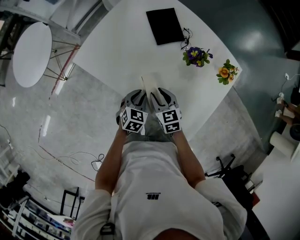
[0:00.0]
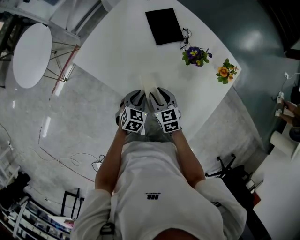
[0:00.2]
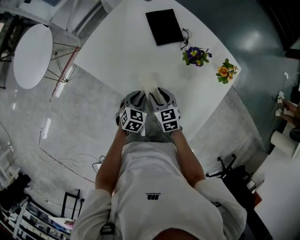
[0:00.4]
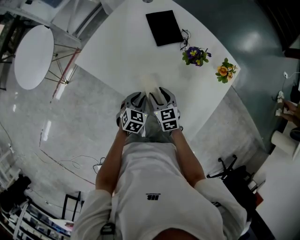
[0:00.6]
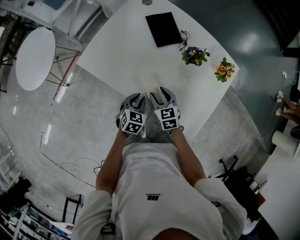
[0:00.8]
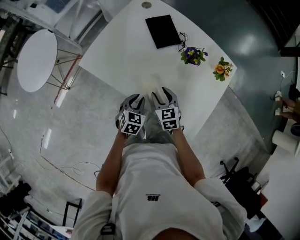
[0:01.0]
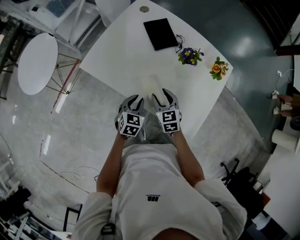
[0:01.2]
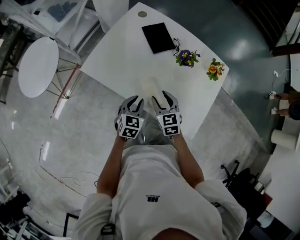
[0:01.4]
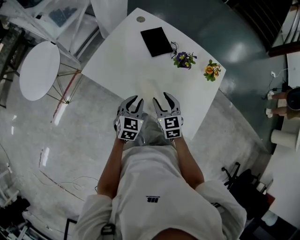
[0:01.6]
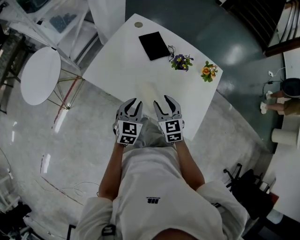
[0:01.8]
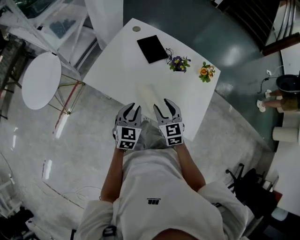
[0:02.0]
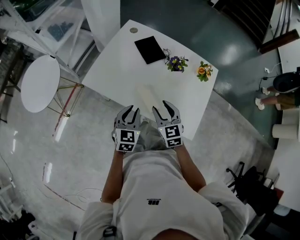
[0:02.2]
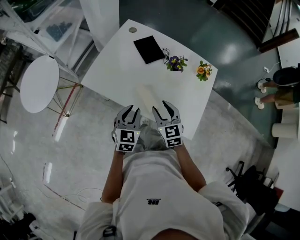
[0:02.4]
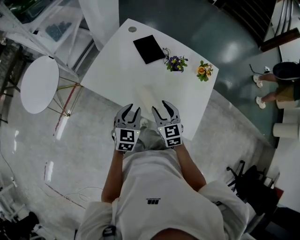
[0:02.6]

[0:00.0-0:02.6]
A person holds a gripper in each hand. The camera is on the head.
0:00.0 to 0:01.2: The left gripper shifts by some 5 cm.
0:01.2 to 0:02.6: The grippers both shift upward by approximately 10 cm.

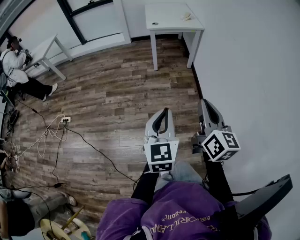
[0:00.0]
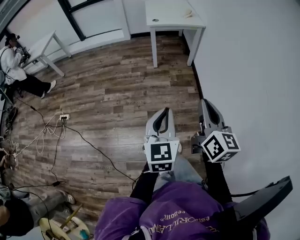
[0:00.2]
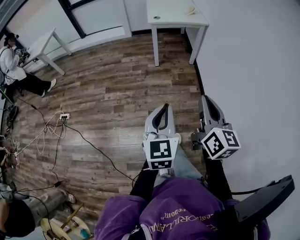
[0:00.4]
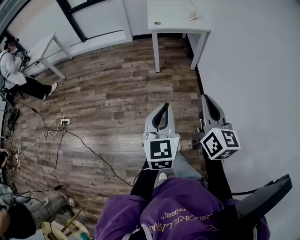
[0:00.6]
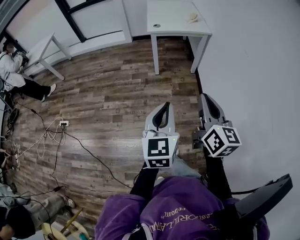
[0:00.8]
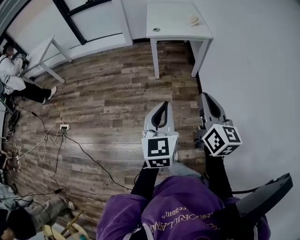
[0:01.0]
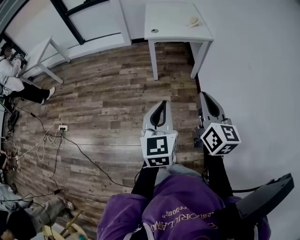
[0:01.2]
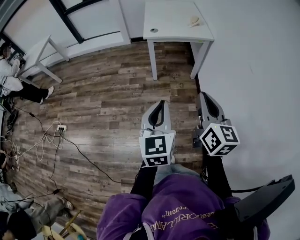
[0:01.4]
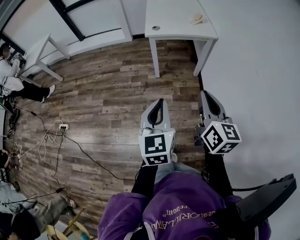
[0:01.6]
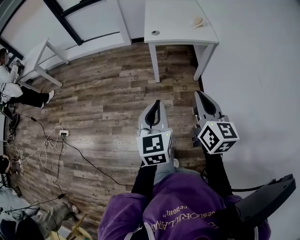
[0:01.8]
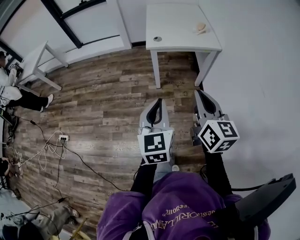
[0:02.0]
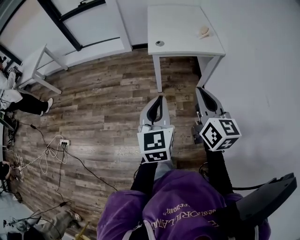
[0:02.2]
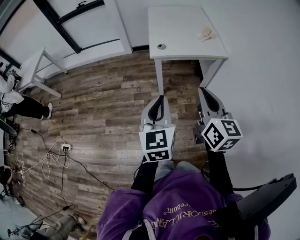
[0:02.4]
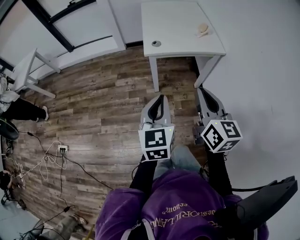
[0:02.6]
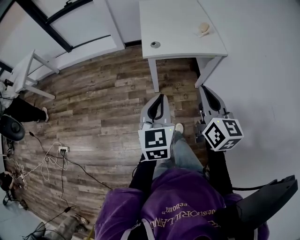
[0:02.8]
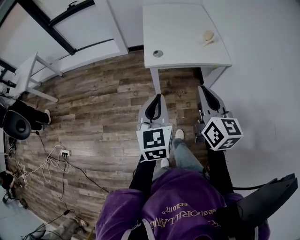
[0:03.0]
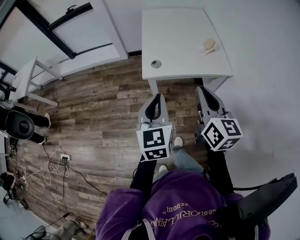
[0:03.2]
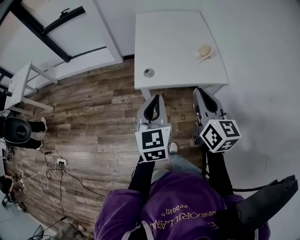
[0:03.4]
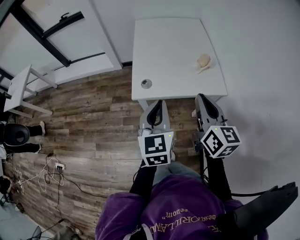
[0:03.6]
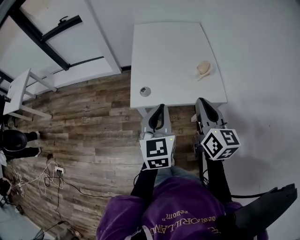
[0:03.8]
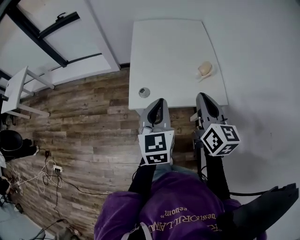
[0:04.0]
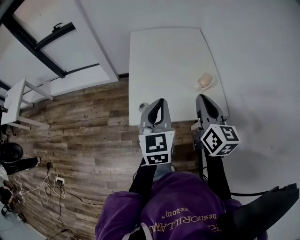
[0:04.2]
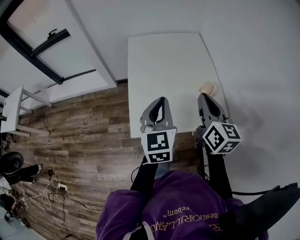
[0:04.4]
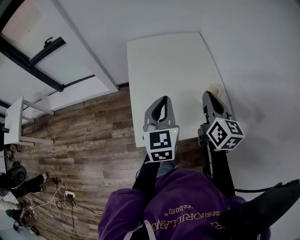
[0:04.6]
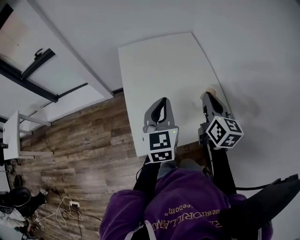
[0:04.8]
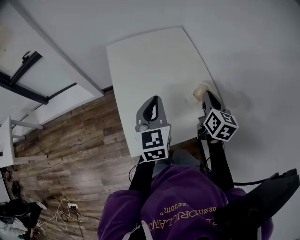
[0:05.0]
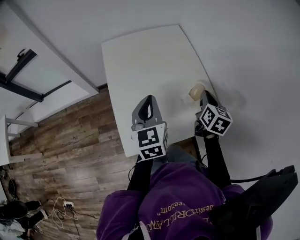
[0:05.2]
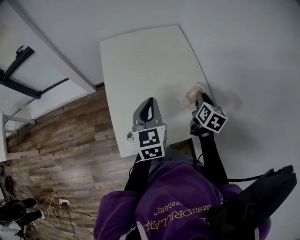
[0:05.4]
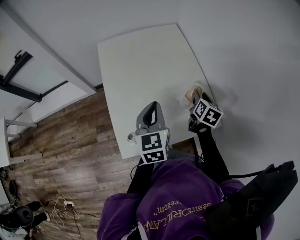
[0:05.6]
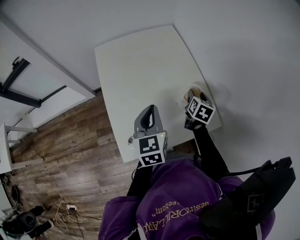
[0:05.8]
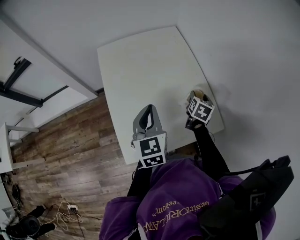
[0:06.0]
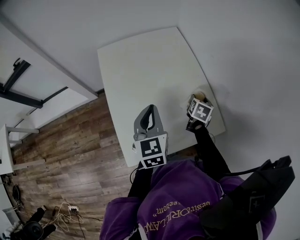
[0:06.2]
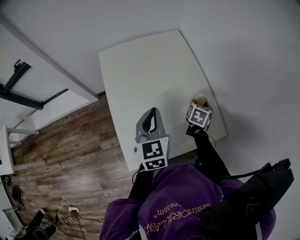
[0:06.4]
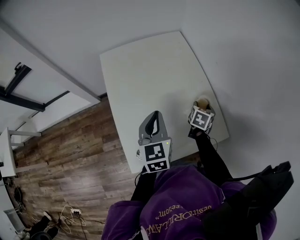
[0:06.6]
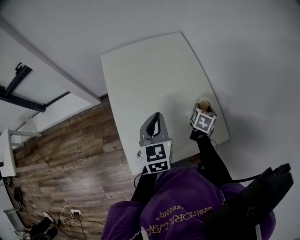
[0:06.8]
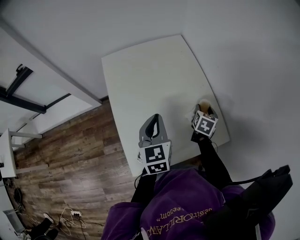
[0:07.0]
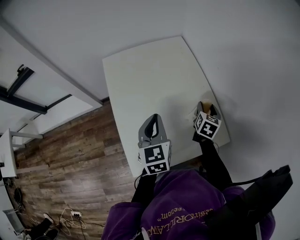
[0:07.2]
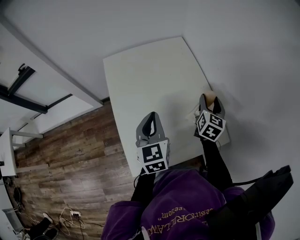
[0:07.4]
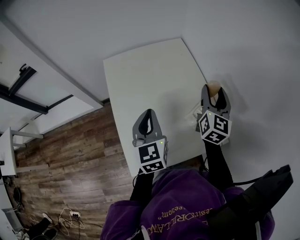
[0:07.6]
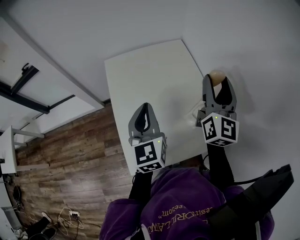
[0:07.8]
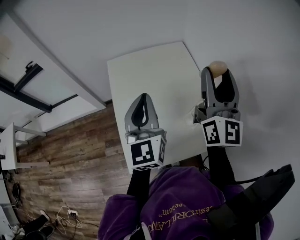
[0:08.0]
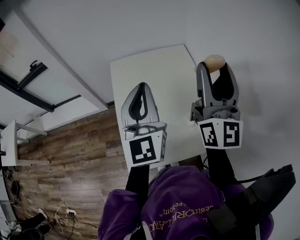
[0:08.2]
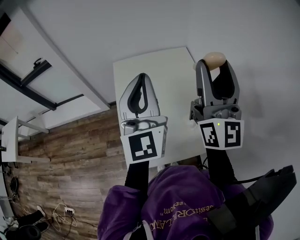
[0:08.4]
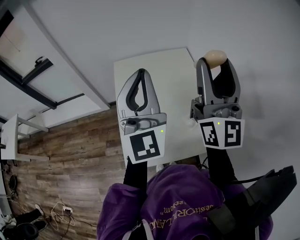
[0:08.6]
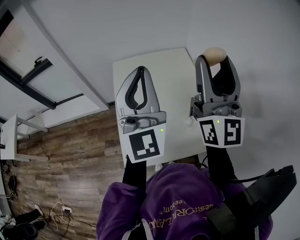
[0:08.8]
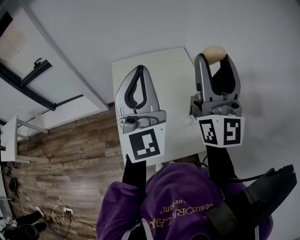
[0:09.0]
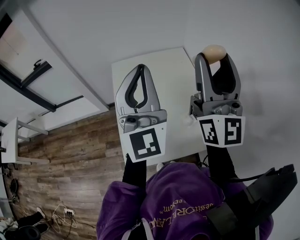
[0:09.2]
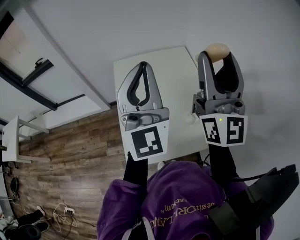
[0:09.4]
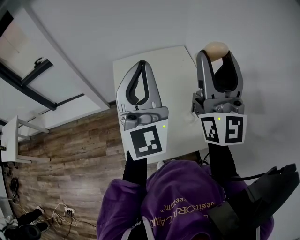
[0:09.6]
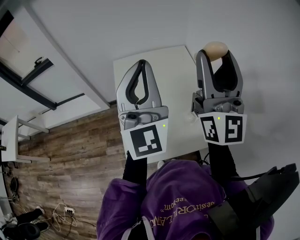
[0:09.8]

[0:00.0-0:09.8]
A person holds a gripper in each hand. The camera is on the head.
0:00.0 to 0:01.4: The grippers both shift forward by roughly 30 cm.
0:01.4 to 0:02.8: The two grippers go about 30 cm forward.
0:02.8 to 0:04.2: Both grippers travel together forward, about 35 cm.
0:04.2 to 0:05.6: The left gripper heads forward and downward, covering approximately 20 cm. The right gripper travels forward, downward and to the right by some 30 cm, turns by approximately 40 degrees, and opens.
0:05.6 to 0:07.0: The right gripper goes about 5 cm downward.
0:07.0 to 0:08.4: The right gripper heads upward, covering about 40 cm, and points its fingers roughly 70 degrees further upward; the left gripper shifts roughly 25 cm upward, and tilts its fingers roughly 40 degrees upward.
0:08.4 to 0:09.8: The grippers move only a little.

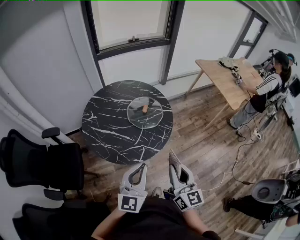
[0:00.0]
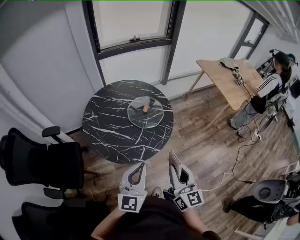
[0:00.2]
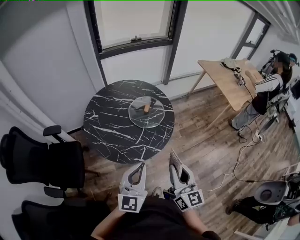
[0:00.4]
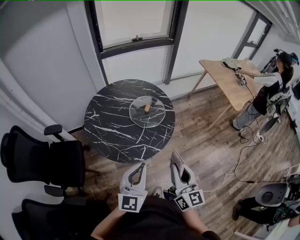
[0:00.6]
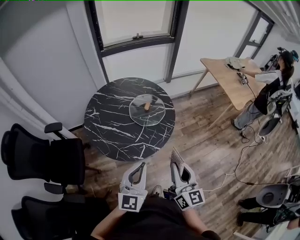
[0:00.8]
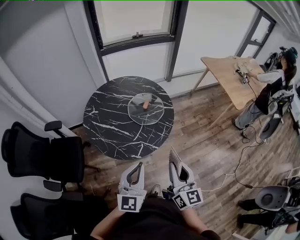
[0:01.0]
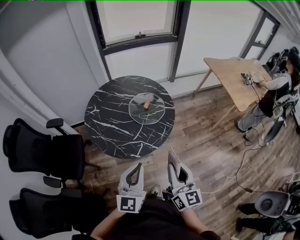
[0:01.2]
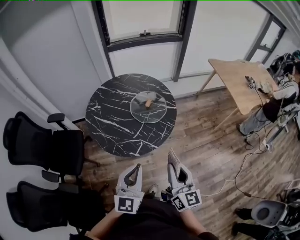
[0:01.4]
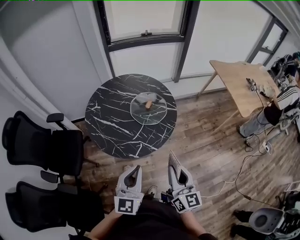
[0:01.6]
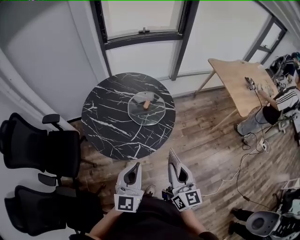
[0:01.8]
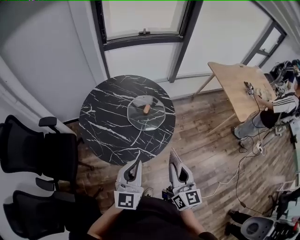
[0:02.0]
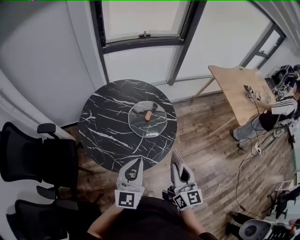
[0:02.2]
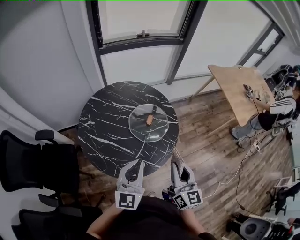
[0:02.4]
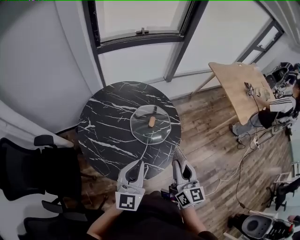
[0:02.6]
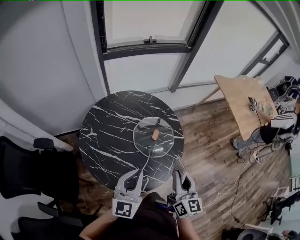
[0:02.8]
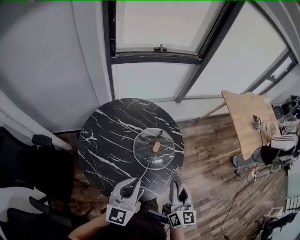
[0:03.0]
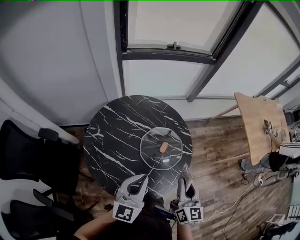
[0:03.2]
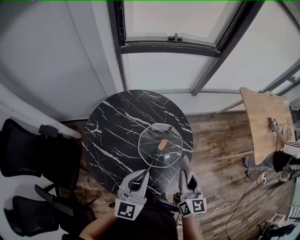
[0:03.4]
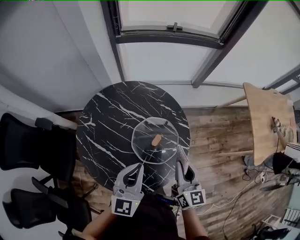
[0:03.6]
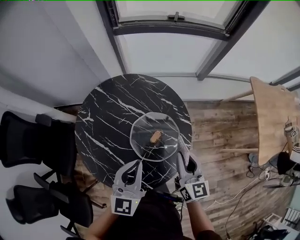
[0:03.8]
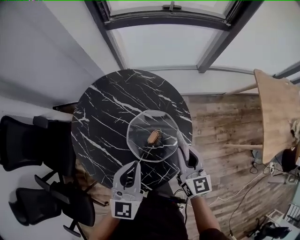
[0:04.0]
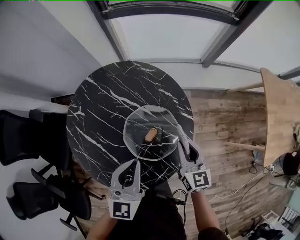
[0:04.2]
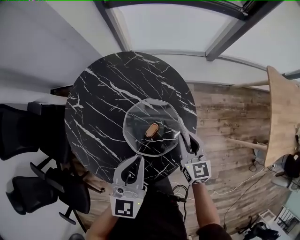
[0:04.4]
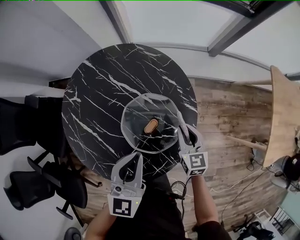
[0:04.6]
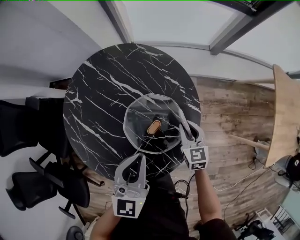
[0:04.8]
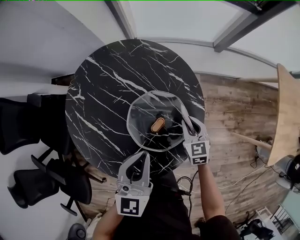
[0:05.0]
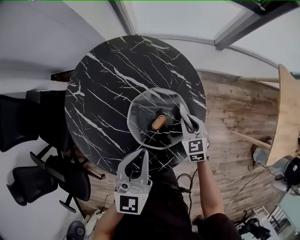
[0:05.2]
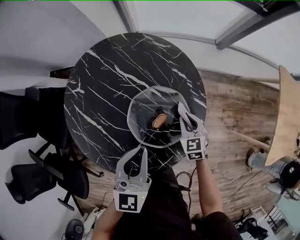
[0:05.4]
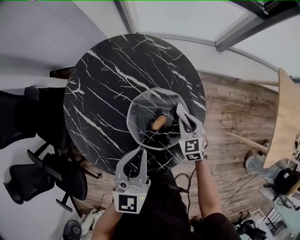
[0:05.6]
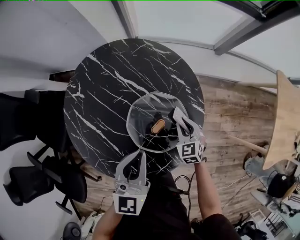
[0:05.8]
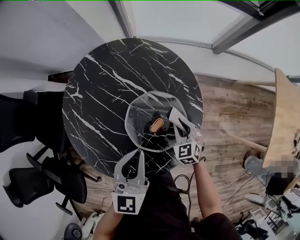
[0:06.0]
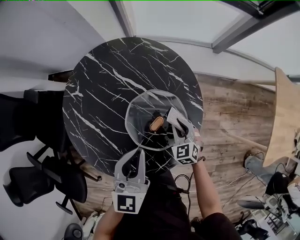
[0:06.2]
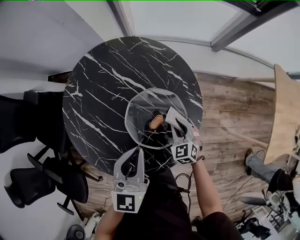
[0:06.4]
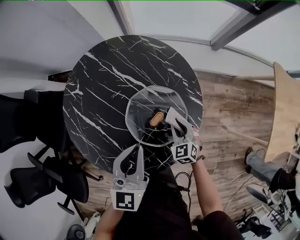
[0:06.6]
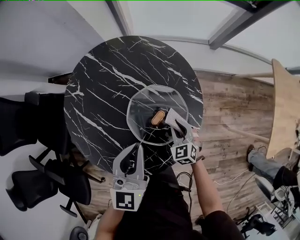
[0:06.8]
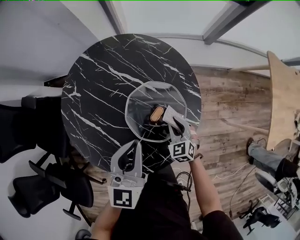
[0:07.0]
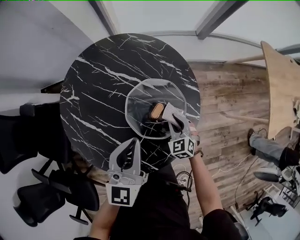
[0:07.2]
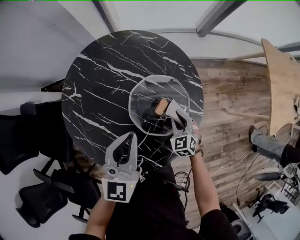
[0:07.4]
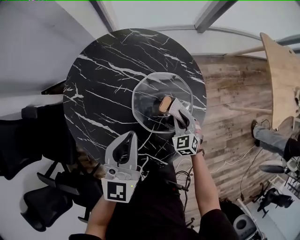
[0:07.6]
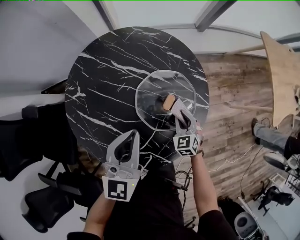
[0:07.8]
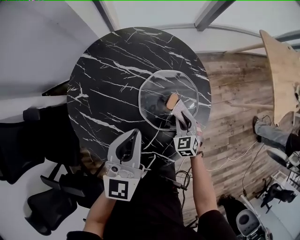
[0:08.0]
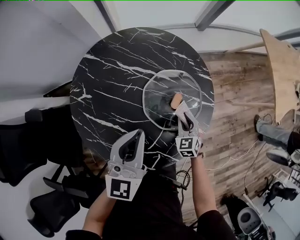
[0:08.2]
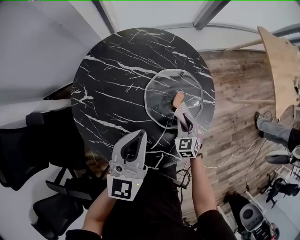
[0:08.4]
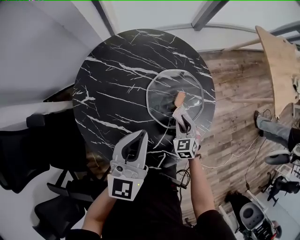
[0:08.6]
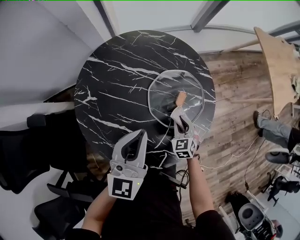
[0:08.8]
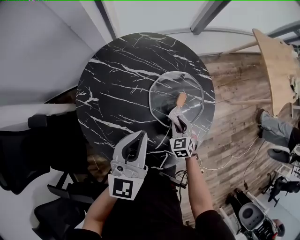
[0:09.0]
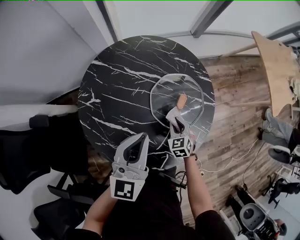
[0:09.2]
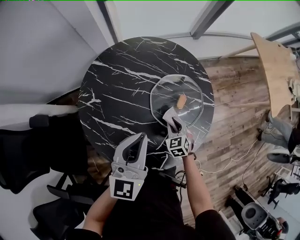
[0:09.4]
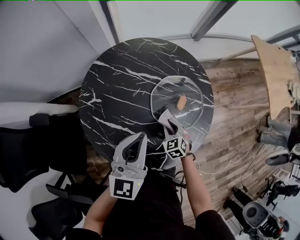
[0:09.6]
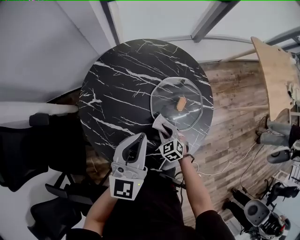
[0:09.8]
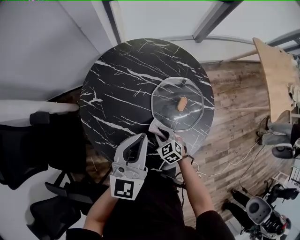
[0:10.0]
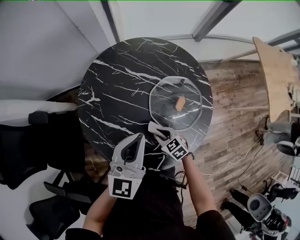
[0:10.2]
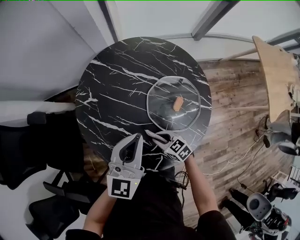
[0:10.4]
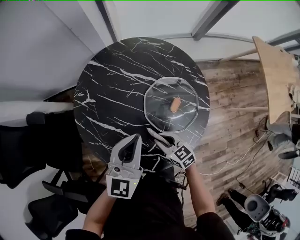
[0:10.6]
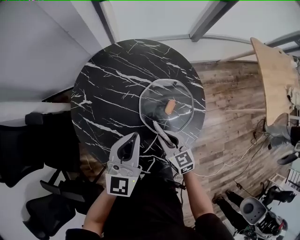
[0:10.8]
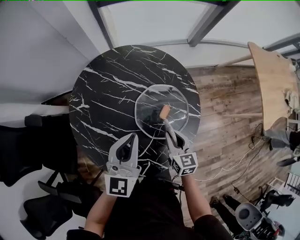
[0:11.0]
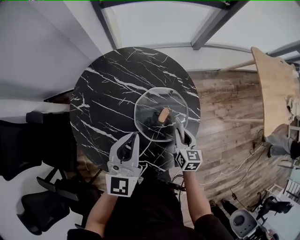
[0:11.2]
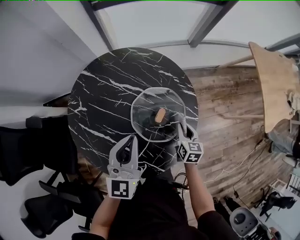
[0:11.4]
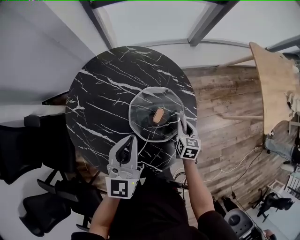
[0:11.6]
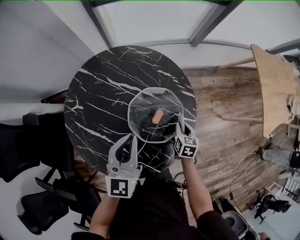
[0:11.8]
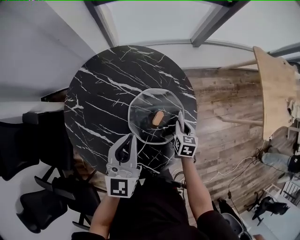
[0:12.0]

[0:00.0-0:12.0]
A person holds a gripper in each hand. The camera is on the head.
0:00.0 to 0:01.6: The right gripper shifts approximately 5 cm to the right; the left gripper shifts by roughly 5 cm.
0:01.6 to 0:03.0: The right gripper heads forward, covering some 25 cm; the left gripper travels forward and to the left by roughly 30 cm.
0:03.0 to 0:04.4: The right gripper ends up roughly 35 cm from where it was, and turns by roughly 30 degrees; the left gripper moves some 20 cm, and changes its angle by about 20 degrees.
0:04.4 to 0:06.0: The right gripper goes roughly 15 cm downward, and changes its angle by approximately 40 degrees.
0:06.0 to 0:07.6: The right gripper goes approximately 5 cm backward. The left gripper is displaced to the left by roughly 5 cm.
0:07.6 to 0:09.0: The left gripper travels to the left by roughly 5 cm. The right gripper goes some 10 cm to the left and backward.
0:09.0 to 0:10.4: The right gripper moves roughly 15 cm, and rotates some 50 degrees.
0:10.4 to 0:12.0: The right gripper reaches approximately 10 cm upward, then returns, and changes its angle by approximately 50 degrees. The left gripper ends up approximately 10 cm from where it was.
